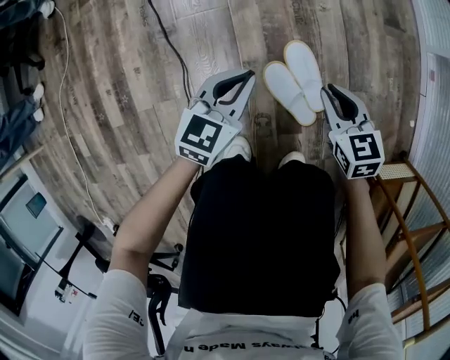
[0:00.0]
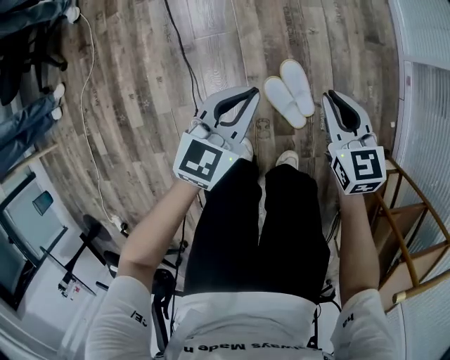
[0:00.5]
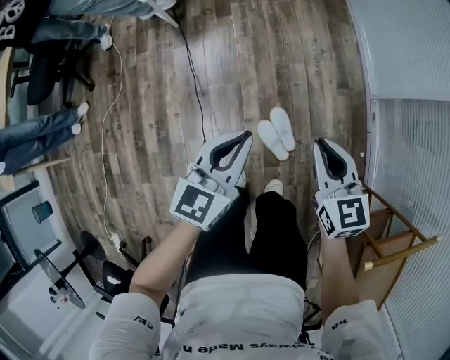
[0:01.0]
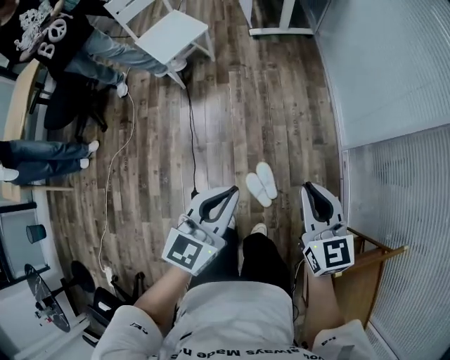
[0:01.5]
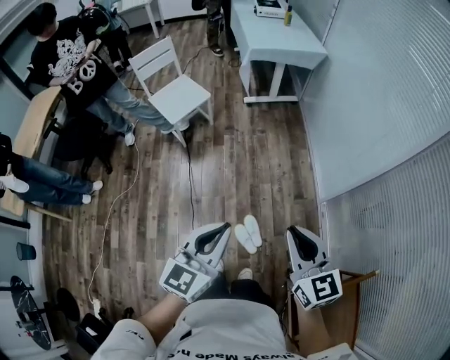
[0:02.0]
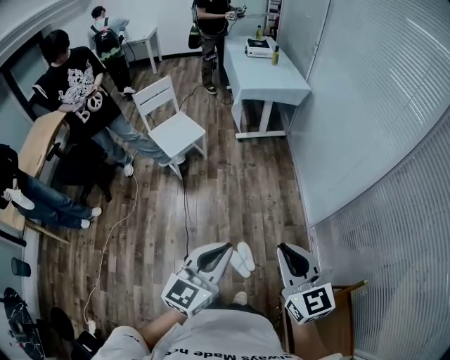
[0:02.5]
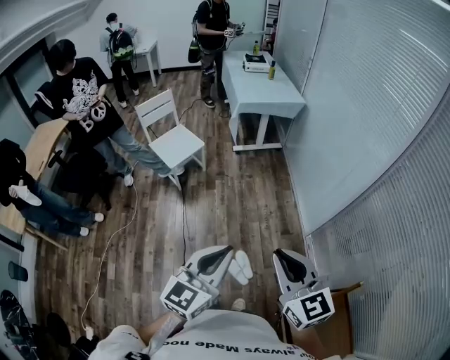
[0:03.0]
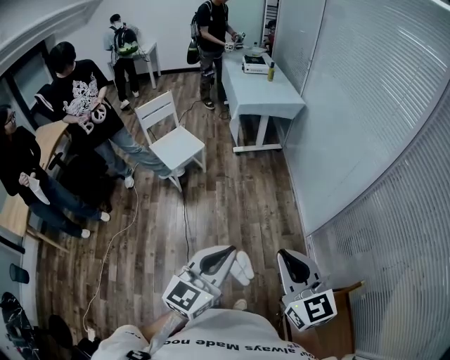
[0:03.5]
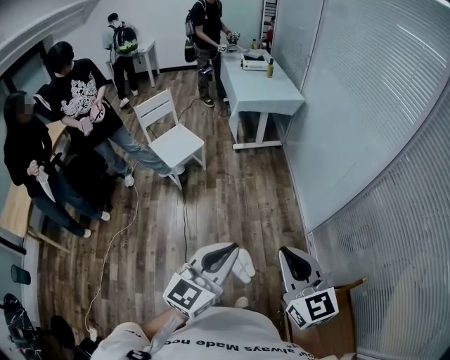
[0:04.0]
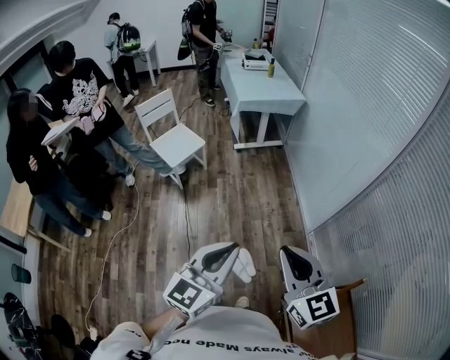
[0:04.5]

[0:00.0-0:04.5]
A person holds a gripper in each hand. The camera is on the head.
0:00.0 to 0:02.0: The grippers both shift upward by roughly 80 cm. The right gripper turns by about 30 degrees. The left gripper swivels about 30 degrees.
0:02.0 to 0:04.5: The grippers both shift upward and backward by about 15 cm.

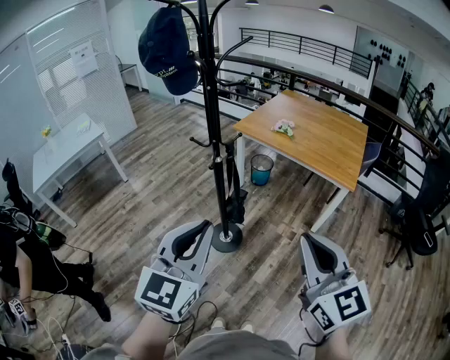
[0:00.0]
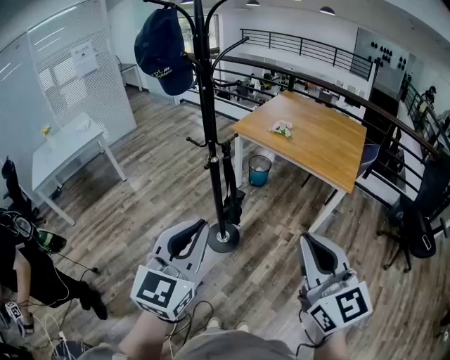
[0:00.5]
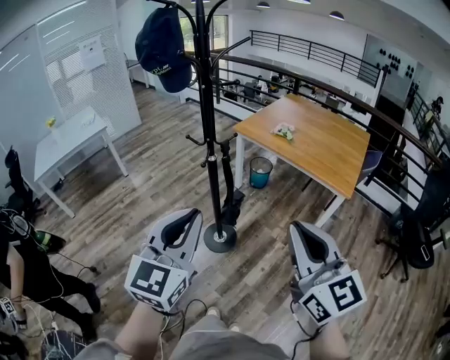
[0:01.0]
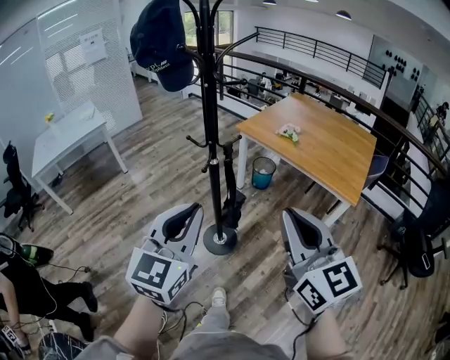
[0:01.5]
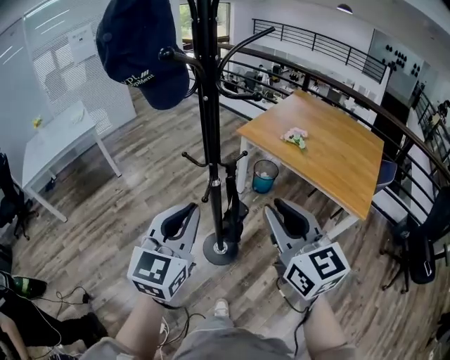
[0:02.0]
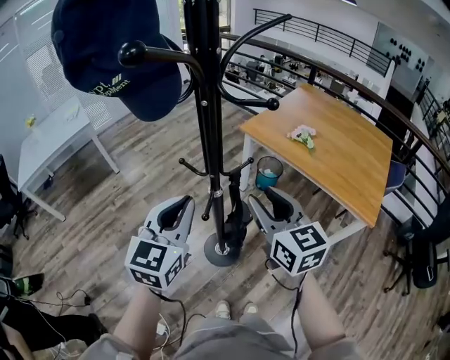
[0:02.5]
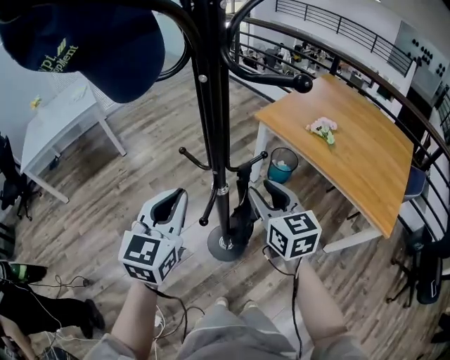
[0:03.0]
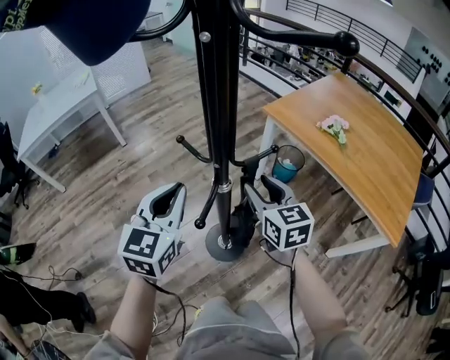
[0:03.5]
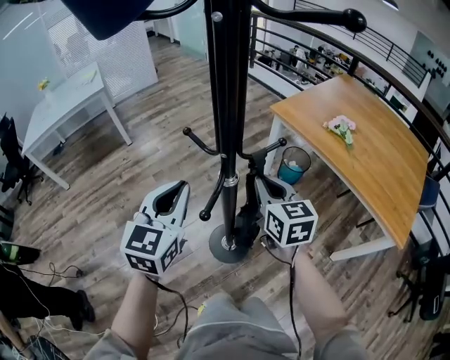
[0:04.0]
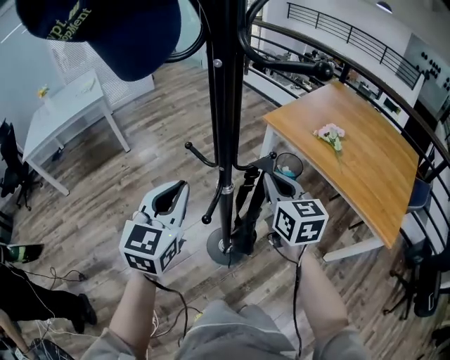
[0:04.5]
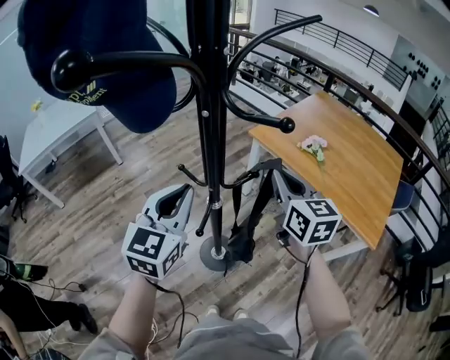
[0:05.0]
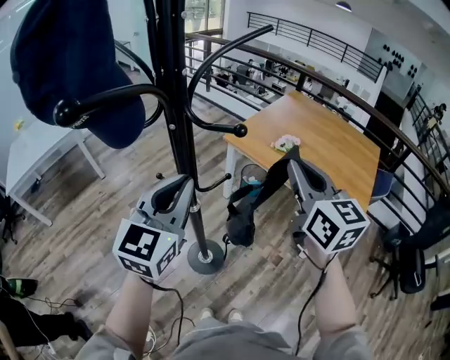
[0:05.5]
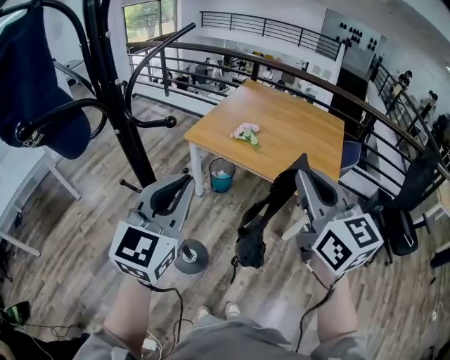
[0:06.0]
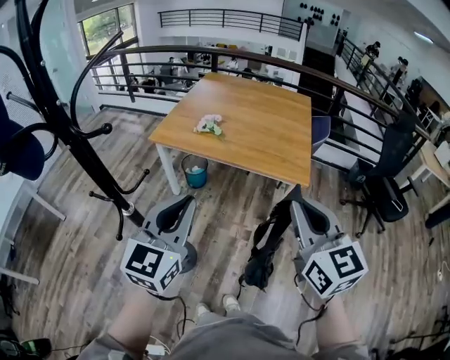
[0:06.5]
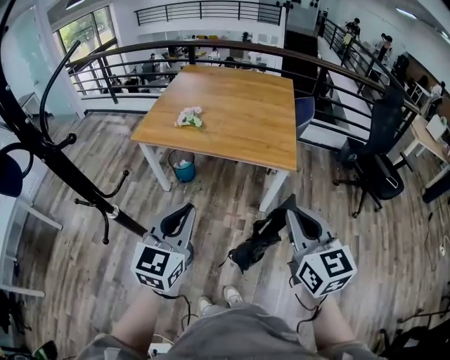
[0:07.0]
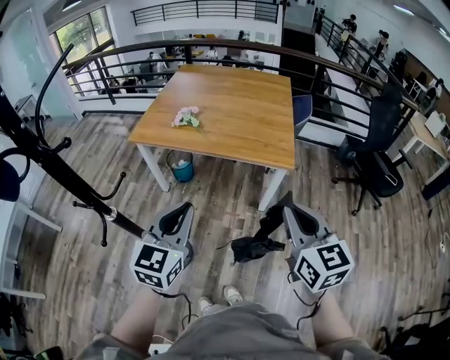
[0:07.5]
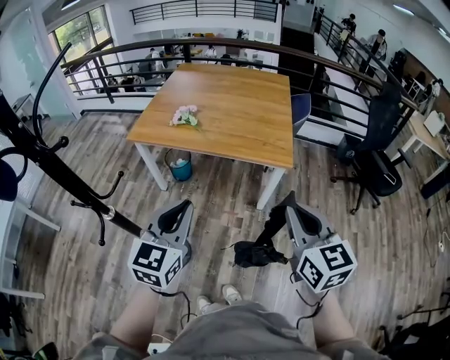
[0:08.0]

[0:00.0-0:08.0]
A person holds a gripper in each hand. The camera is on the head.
0:00.0 to 0:02.0: Both grippers move forward, approximately 25 cm.
0:02.0 to 0:04.0: The grippers both shift downward and forward by some 30 cm. The right gripper opens, then closes once more.
0:04.0 to 0:06.0: The two grippers go roughly 30 cm upward. The left gripper changes its angle by roughly 30 degrees, while the right gripper rotates approximately 30 degrees.
0:06.0 to 0:08.0: Both grippers move to the right and downward, some 20 cm. The right gripper turns by roughly 20 degrees.

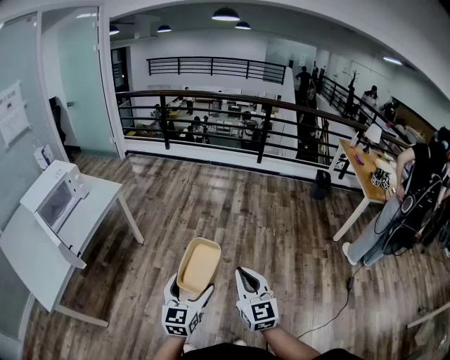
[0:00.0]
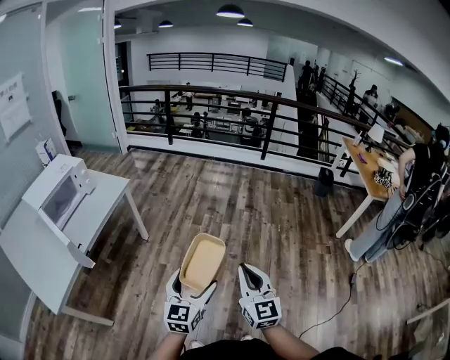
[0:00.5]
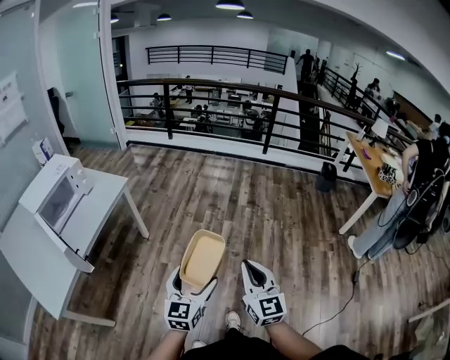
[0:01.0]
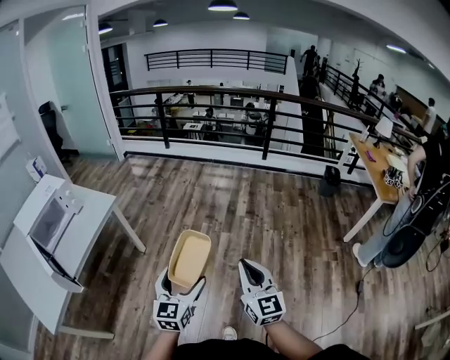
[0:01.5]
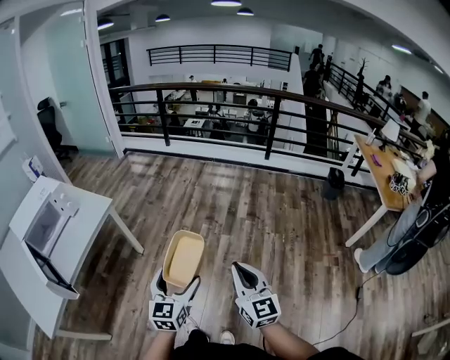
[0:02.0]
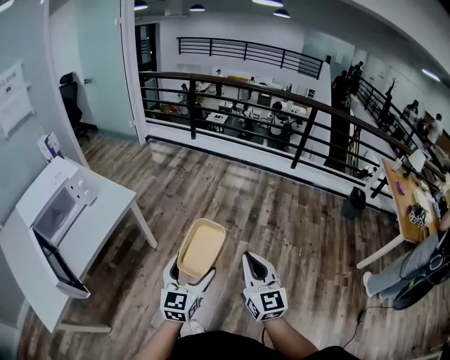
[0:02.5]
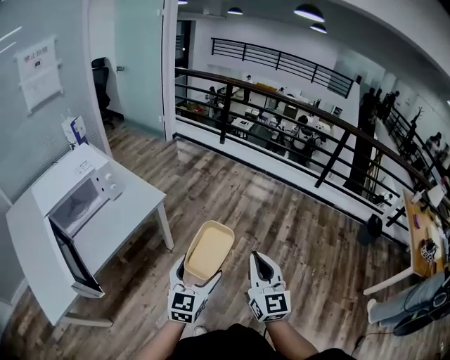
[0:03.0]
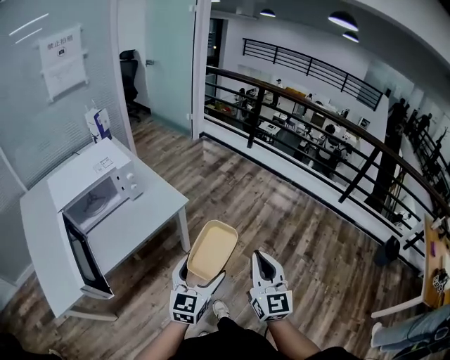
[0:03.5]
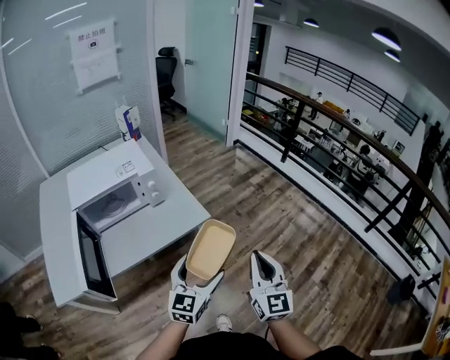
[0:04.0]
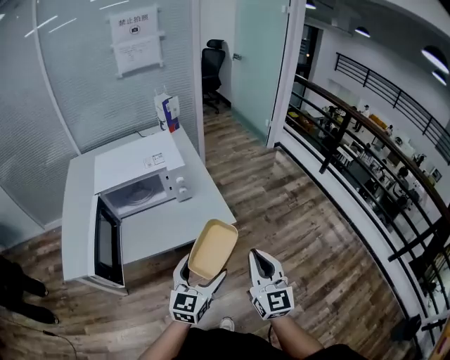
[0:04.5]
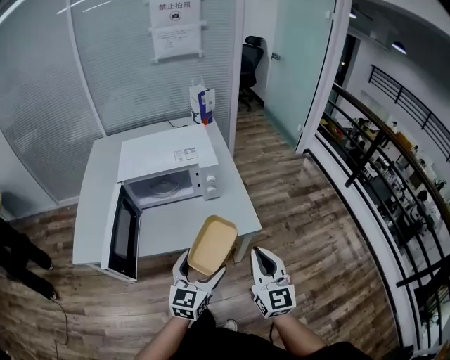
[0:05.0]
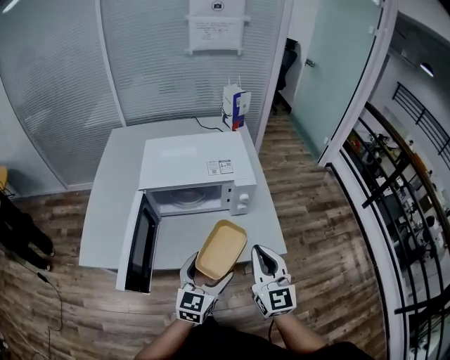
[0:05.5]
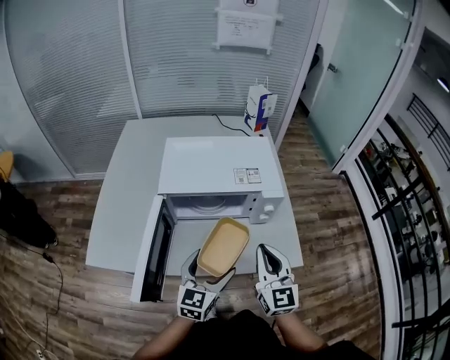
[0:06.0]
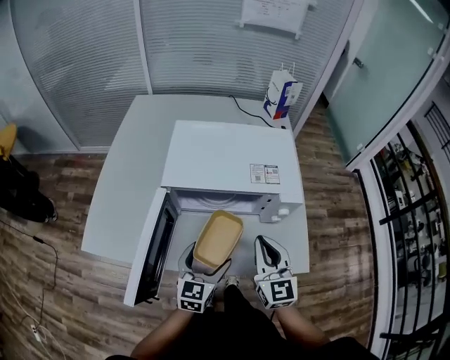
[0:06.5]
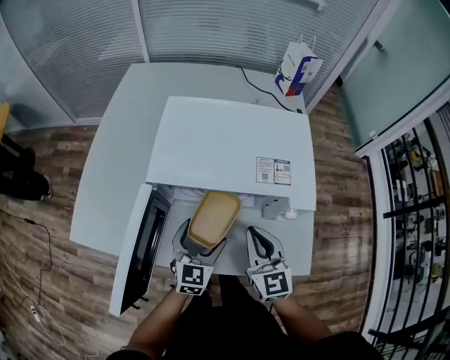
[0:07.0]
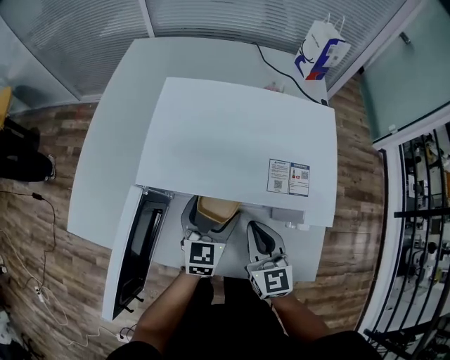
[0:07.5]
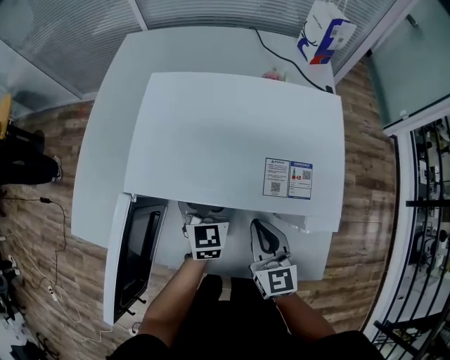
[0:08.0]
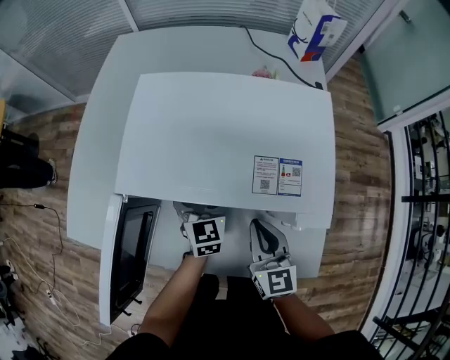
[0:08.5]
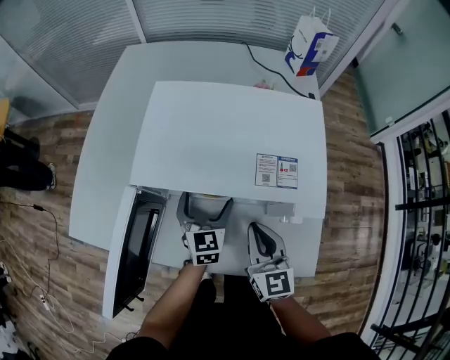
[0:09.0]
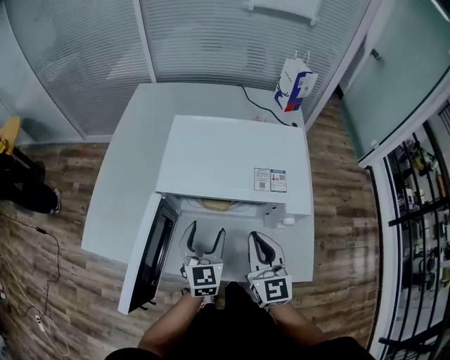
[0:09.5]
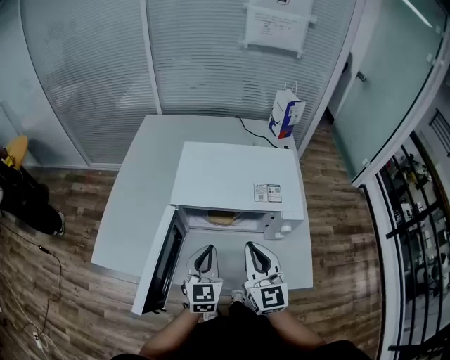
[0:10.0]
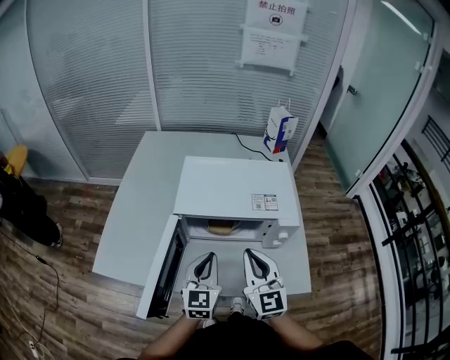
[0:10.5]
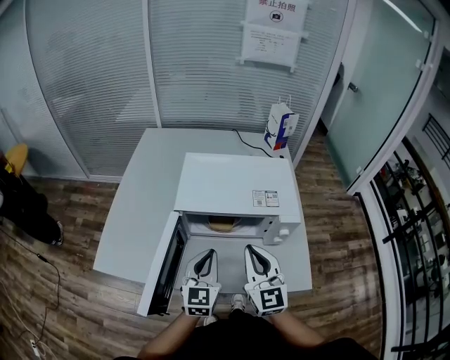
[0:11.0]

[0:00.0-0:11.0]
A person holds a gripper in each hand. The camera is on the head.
0:00.0 to 0:02.0: The two grippers go roughly 20 cm forward.
0:02.0 to 0:03.5: The left gripper goes some 30 cm to the left and forward. Meanwhile the right gripper goes approximately 35 cm forward and to the left.
0:03.5 to 0:05.5: The right gripper moves about 40 cm, and swivels approximately 50 degrees, while the left gripper changes place by roughly 30 cm, and swivels some 40 degrees.
0:05.5 to 0:07.5: The left gripper moves forward and downward, about 30 cm, and swivels roughly 20 degrees. Meanwhile the right gripper is displaced forward, downward and to the left by about 30 cm, and rotates roughly 30 degrees.
0:09.0 to 0:11.0: The left gripper shifts roughly 20 cm upward and backward, and closes. Meanwhile the right gripper is displaced upward, backward and to the left by approximately 15 cm.

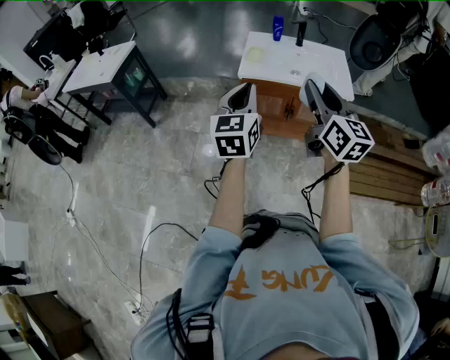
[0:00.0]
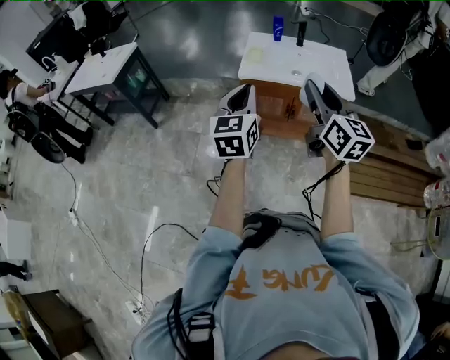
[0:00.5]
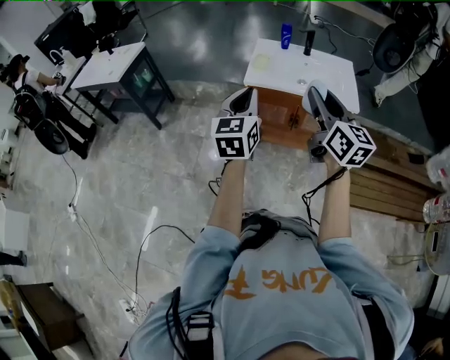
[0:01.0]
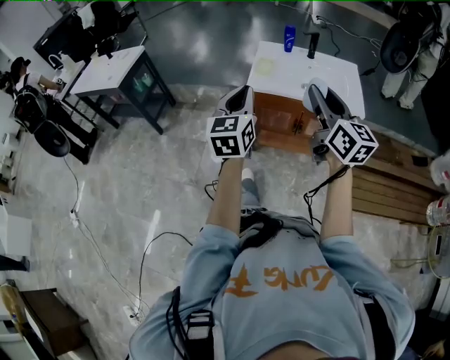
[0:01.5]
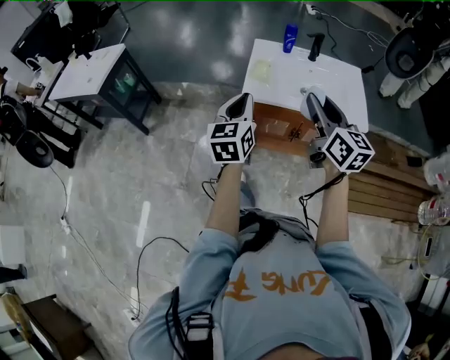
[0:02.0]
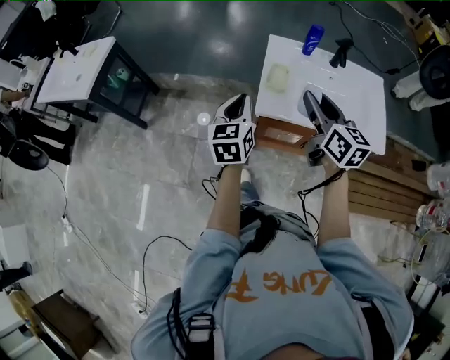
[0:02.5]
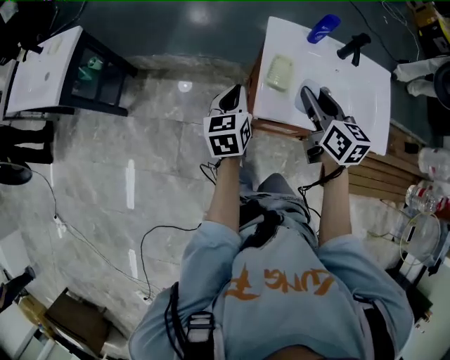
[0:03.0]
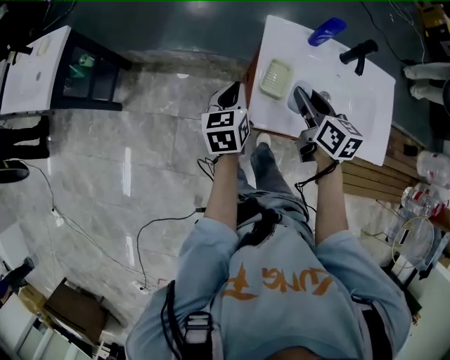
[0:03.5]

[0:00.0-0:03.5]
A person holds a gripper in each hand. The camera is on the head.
0:00.0 to 0:02.0: Both grippers travel together forward, some 20 cm.
0:02.0 to 0:03.5: Both grippers move forward and downward, roughly 35 cm. The left gripper swivels roughly 20 degrees, while the right gripper swivels about 30 degrees.
